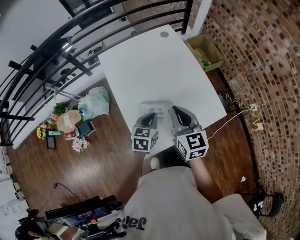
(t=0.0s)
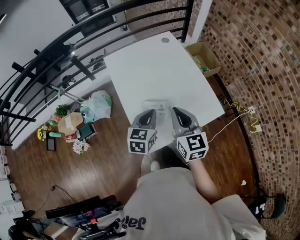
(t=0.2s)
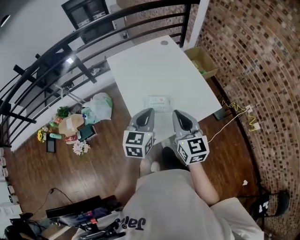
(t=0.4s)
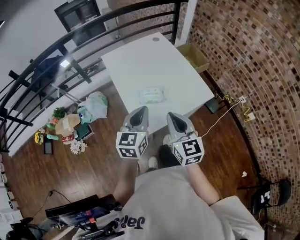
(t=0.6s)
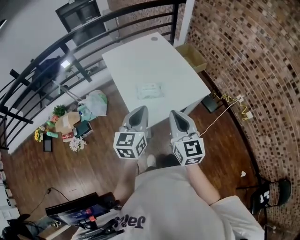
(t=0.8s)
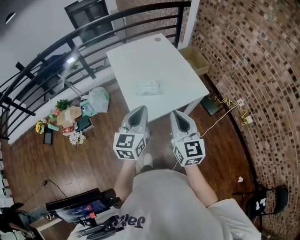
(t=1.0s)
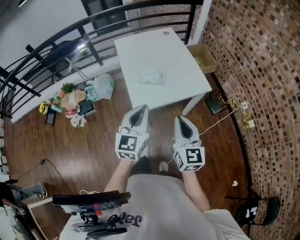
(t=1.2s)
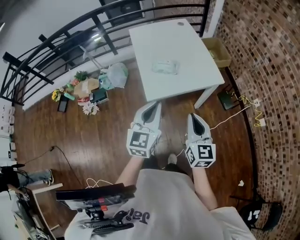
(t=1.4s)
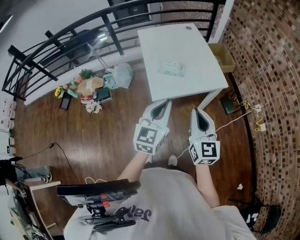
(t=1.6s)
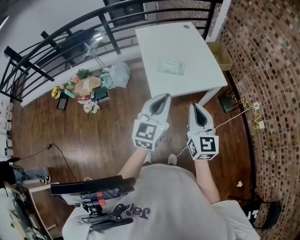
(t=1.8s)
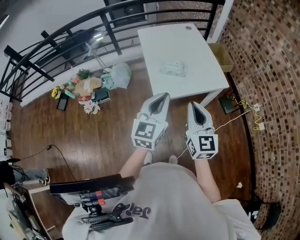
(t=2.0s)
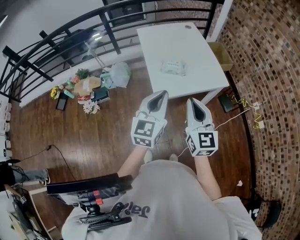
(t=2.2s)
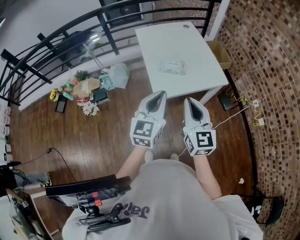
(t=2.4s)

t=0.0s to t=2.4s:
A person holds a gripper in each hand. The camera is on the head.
t=0.0s to t=1.2s: The right gripper heads backward, covering about 35 cm, while the left gripper shifts about 40 cm backward and upward, and turns by some 30 degrees.
t=1.2s to t=2.4s: The right gripper moves to the left, roughly 10 cm. Meanwhile the left gripper shifts about 5 cm to the left.

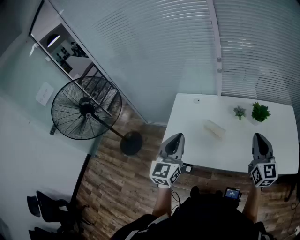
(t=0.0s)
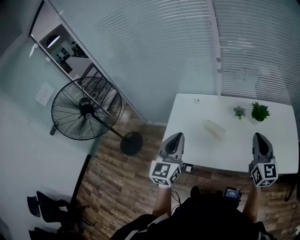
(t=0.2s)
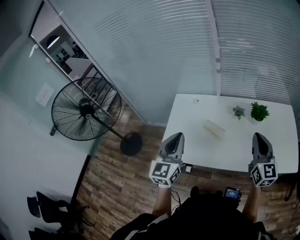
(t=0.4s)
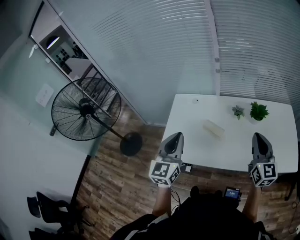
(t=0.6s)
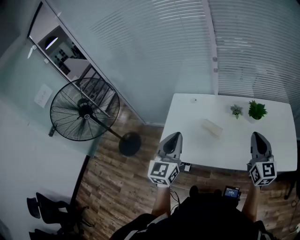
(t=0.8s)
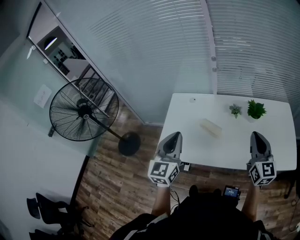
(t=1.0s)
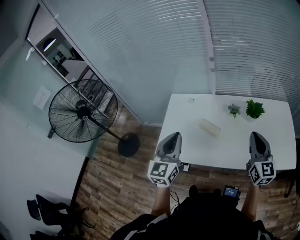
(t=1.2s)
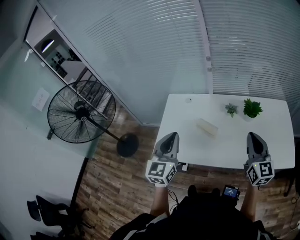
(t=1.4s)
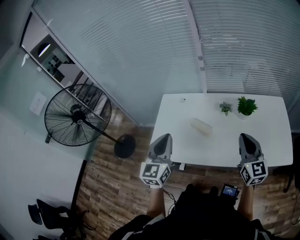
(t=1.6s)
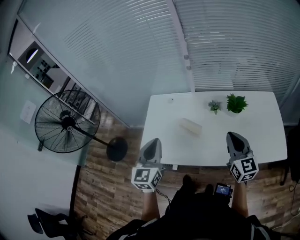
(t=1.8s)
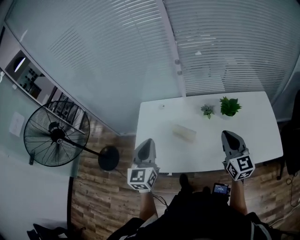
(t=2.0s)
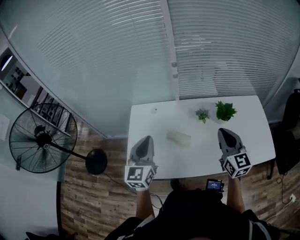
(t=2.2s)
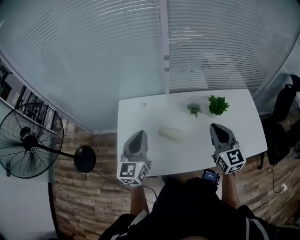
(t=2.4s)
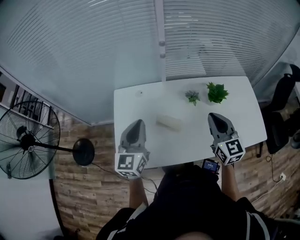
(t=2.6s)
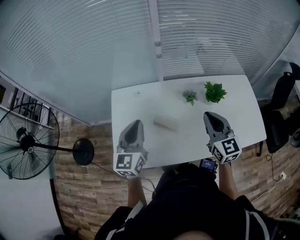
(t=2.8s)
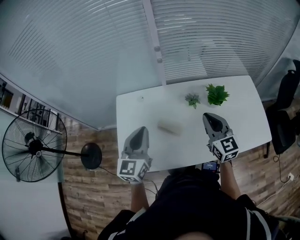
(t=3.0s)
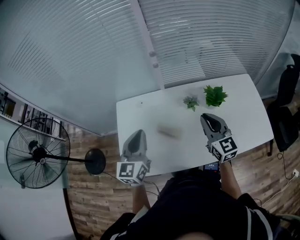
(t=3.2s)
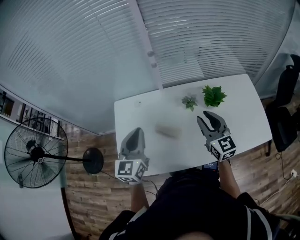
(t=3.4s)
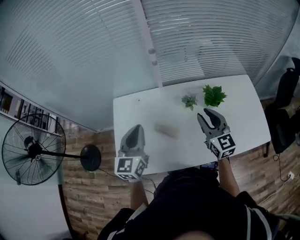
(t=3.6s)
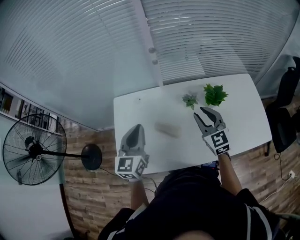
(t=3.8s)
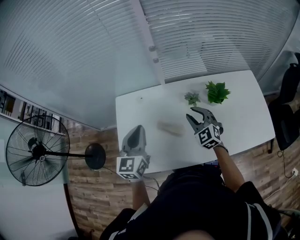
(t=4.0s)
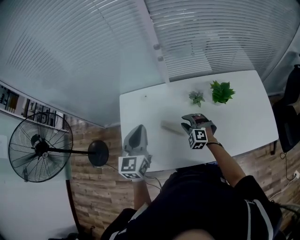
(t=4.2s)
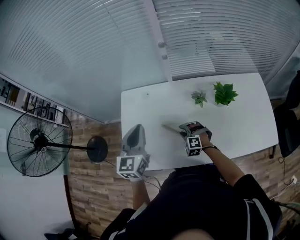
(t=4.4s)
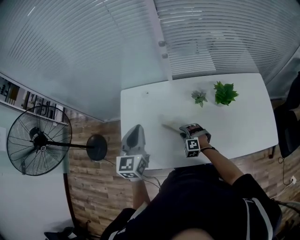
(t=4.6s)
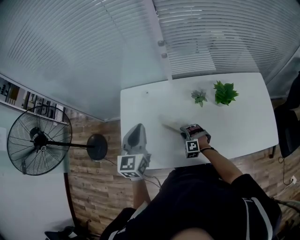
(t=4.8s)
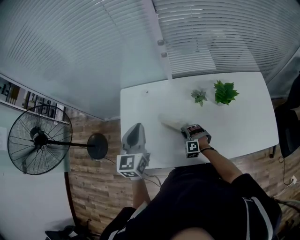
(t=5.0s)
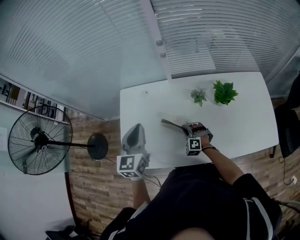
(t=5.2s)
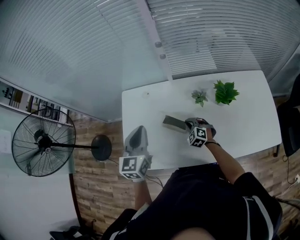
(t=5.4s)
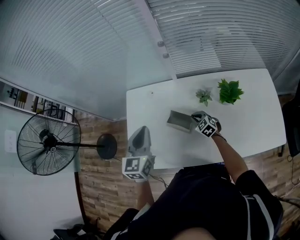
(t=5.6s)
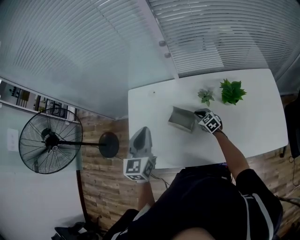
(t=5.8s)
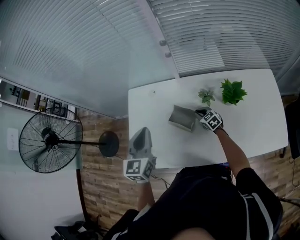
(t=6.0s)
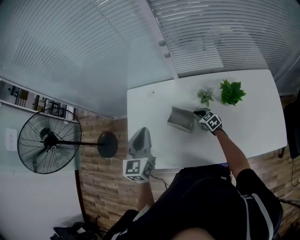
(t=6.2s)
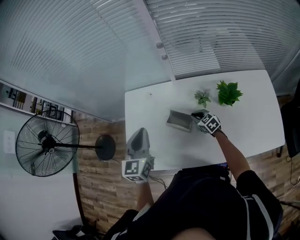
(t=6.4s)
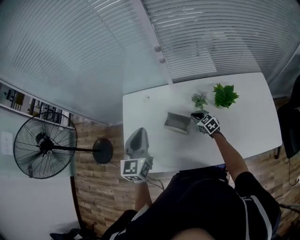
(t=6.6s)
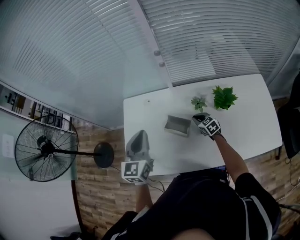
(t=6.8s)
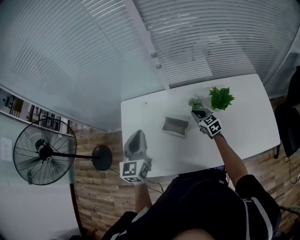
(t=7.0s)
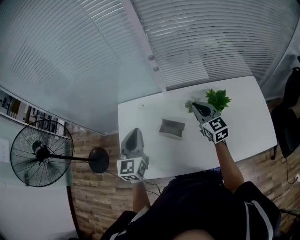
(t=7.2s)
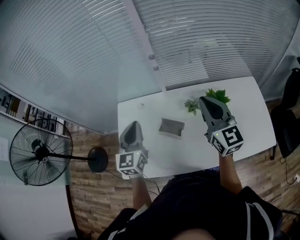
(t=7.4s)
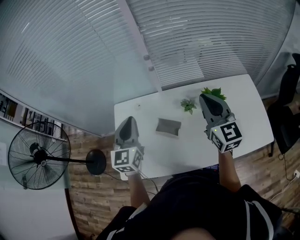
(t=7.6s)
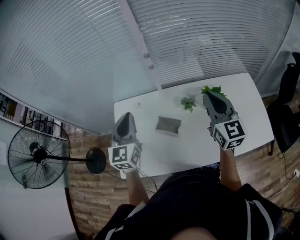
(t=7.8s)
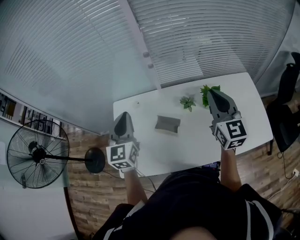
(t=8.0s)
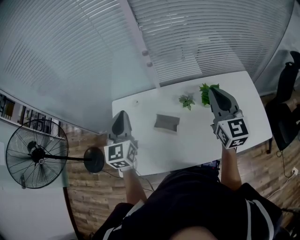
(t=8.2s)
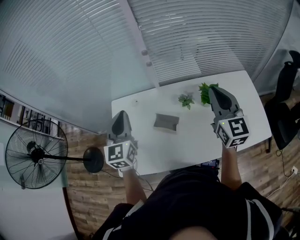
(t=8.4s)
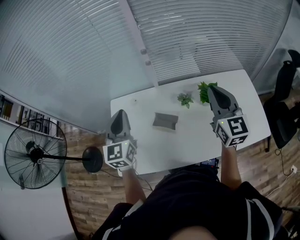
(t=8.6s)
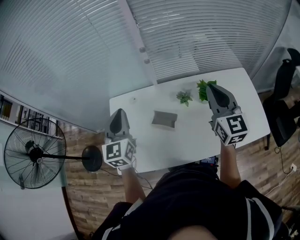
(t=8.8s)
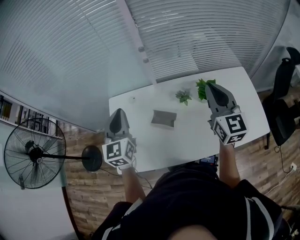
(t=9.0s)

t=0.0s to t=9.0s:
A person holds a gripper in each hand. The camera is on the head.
t=0.0s to t=1.6s: The grippers stay close to where they were, moving slightly.
t=1.6s to t=3.0s: Both grippers travel together forward, approximately 15 cm.
t=3.0s to t=4.4s: The right gripper heads downward and to the left, covering approximately 30 cm, rotates around the line of its fingers by about 60 degrees, counterclockwise from behind, and opens.
t=4.4s to t=6.0s: The right gripper goes some 15 cm forward and to the right, rotates around the line of its fingers by approximately 50 degrees, clockwise from behind, and closes its fingers.
t=6.0s to t=7.6s: The right gripper is displaced upward by some 40 cm, and tips its fingers upward by approximately 40 degrees. The left gripper travels upward by approximately 5 cm.
t=7.6s to t=9.0s: There are only small adjustments of the grippers.

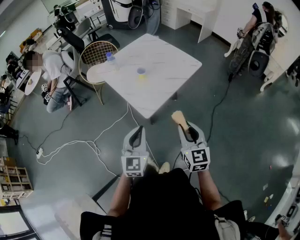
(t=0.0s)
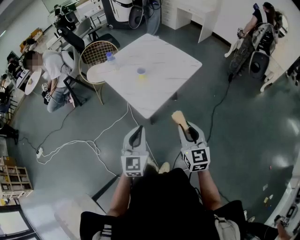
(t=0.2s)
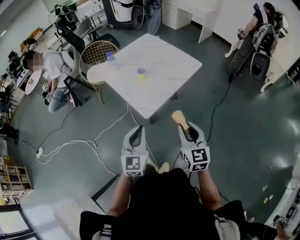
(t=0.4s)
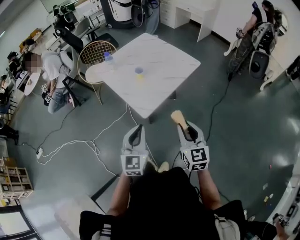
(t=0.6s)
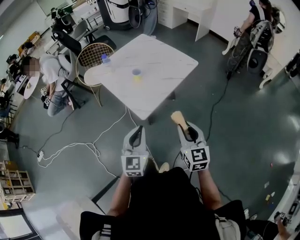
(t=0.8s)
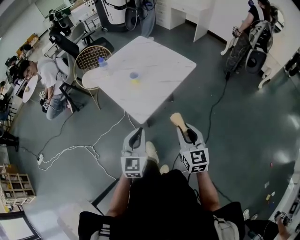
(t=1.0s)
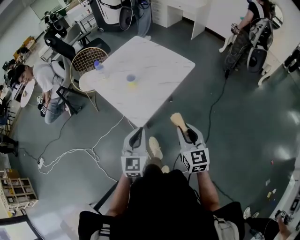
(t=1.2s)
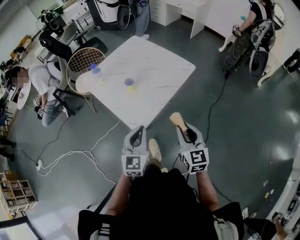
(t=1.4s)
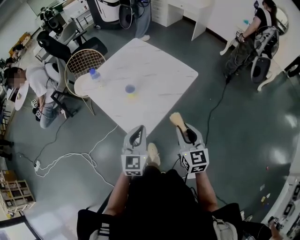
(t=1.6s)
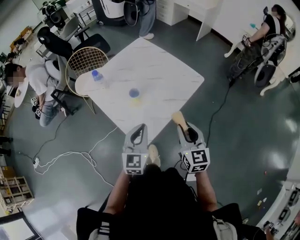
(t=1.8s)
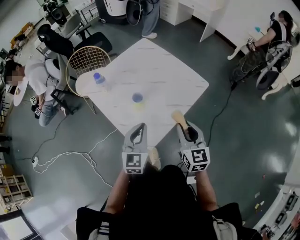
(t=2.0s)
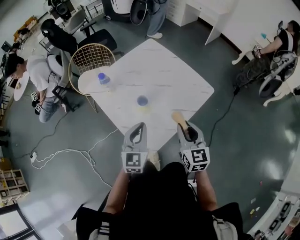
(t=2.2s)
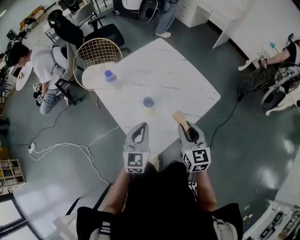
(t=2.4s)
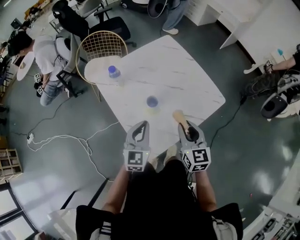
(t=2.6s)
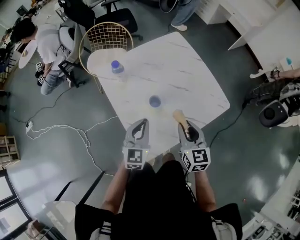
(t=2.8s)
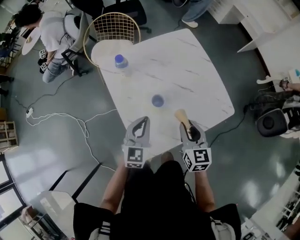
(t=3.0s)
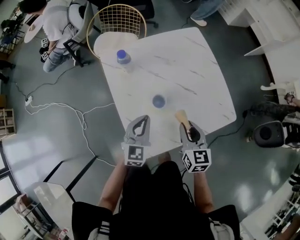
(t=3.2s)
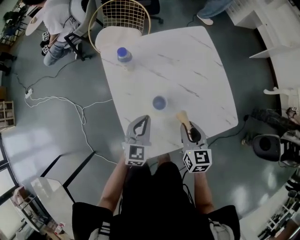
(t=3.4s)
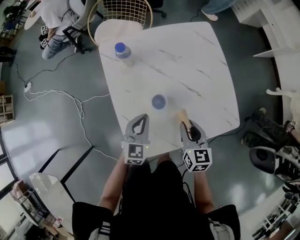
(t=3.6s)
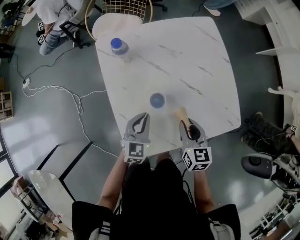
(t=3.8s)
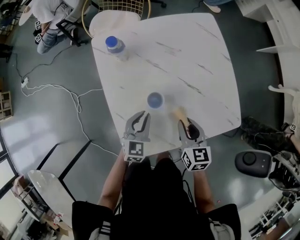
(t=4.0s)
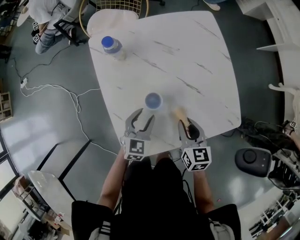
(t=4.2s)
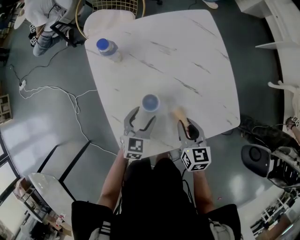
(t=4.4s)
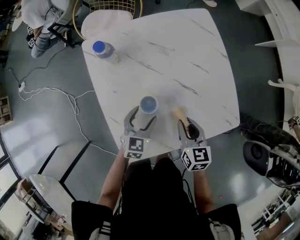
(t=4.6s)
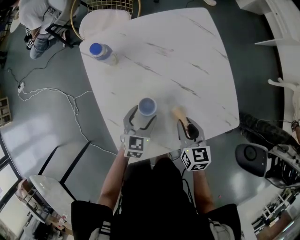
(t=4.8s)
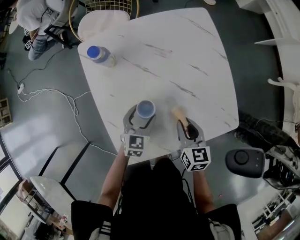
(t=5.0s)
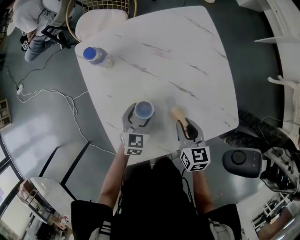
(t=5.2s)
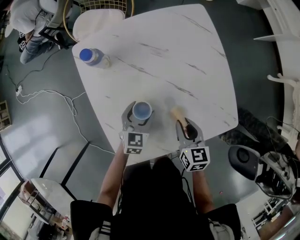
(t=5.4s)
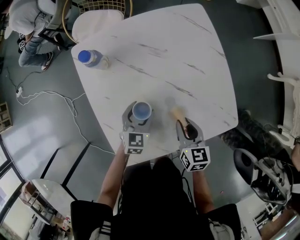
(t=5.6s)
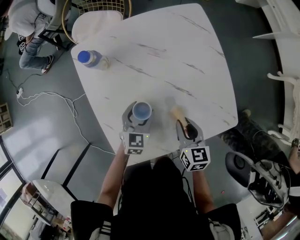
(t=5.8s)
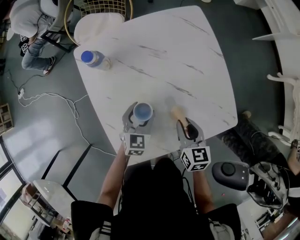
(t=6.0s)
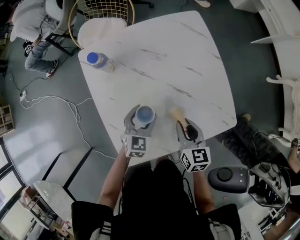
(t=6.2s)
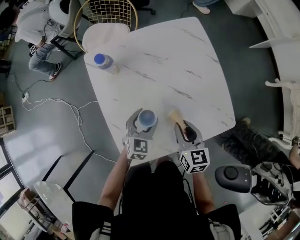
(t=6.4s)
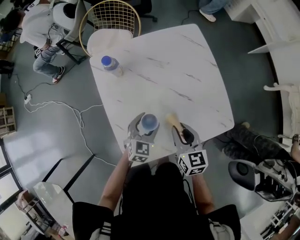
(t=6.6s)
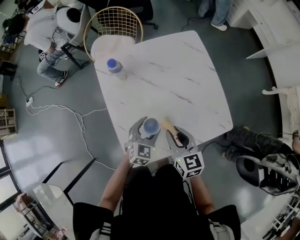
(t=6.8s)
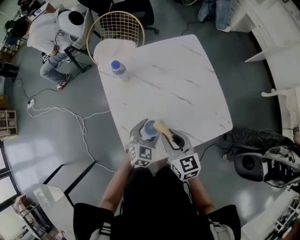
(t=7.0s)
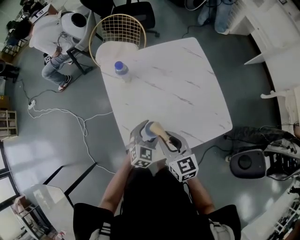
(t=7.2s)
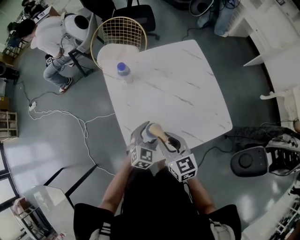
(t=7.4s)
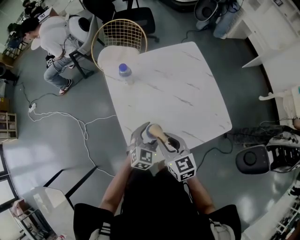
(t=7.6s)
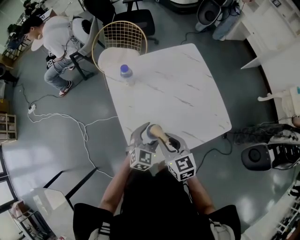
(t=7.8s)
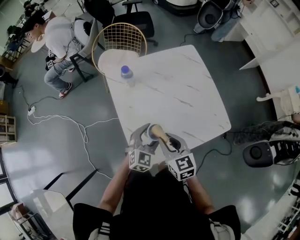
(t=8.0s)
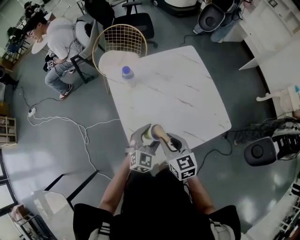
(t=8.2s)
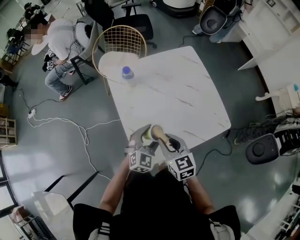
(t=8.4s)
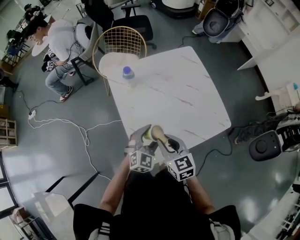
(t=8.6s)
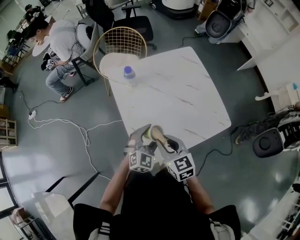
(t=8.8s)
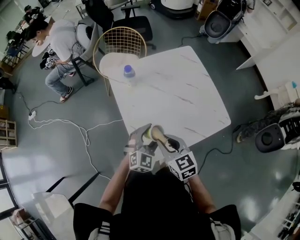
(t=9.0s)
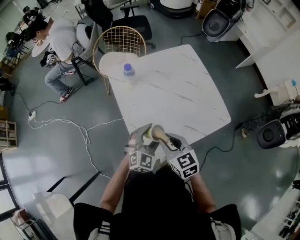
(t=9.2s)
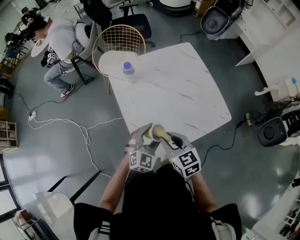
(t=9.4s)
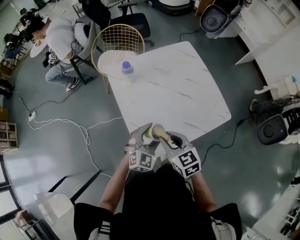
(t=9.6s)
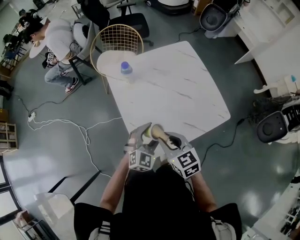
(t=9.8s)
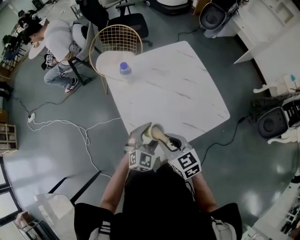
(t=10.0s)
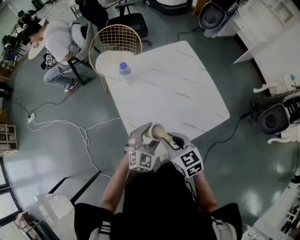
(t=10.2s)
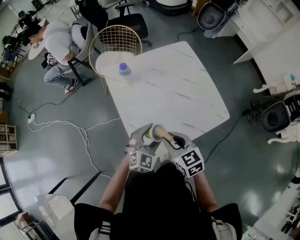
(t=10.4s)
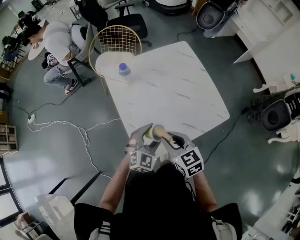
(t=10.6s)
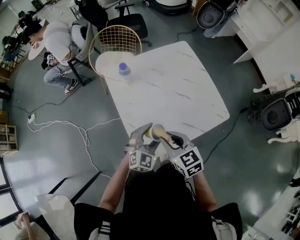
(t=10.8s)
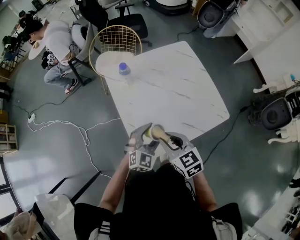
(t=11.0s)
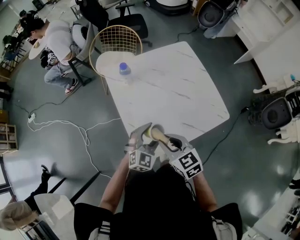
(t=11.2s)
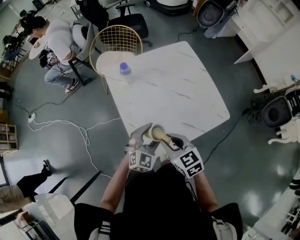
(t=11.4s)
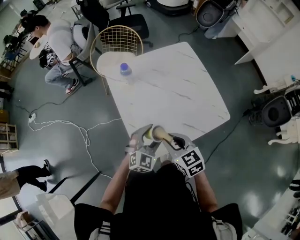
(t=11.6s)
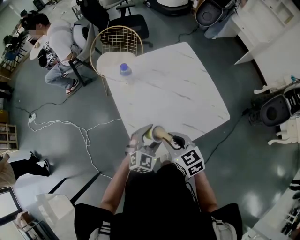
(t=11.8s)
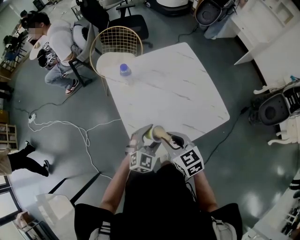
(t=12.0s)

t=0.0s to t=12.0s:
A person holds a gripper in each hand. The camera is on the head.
t=0.0s to t=1.6s: The two grippers go about 20 cm forward.
t=1.6s to t=3.0s: Both grippers travel together forward, approximately 25 cm. The right gripper turns by about 20 degrees.
t=3.0s to t=4.4s: The left gripper heads downward, covering some 15 cm, and opens its fingers. The right gripper is displaced downward and forward by roughly 15 cm.
t=4.4s to t=6.0s: The left gripper moves roughly 5 cm.
t=6.0s to t=7.6s: The right gripper is displaced to the left, upward and backward by some 25 cm, and rotates approximately 20 degrees. The left gripper heads upward and backward, covering some 15 cm.
t=7.6s to t=9.0s: The right gripper ends up about 5 cm from where it was; the left gripper shifts by some 5 cm.
t=9.0s to t=12.0s: The grippers move only a little.
